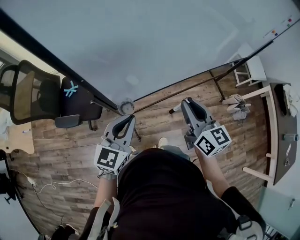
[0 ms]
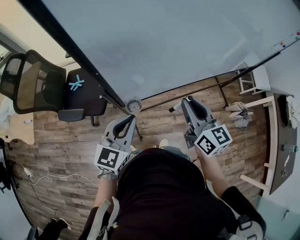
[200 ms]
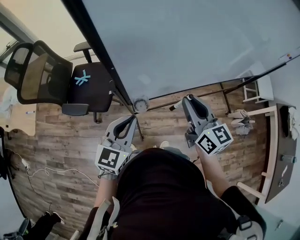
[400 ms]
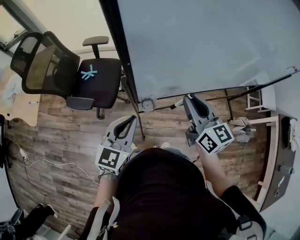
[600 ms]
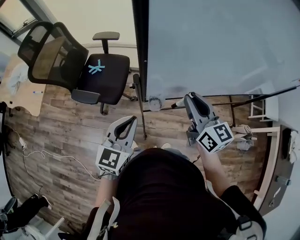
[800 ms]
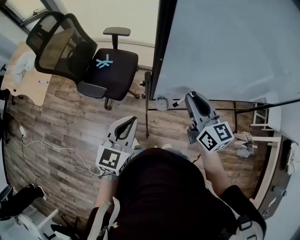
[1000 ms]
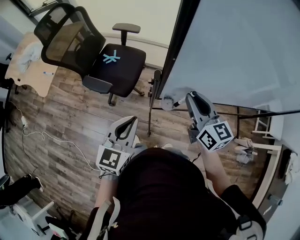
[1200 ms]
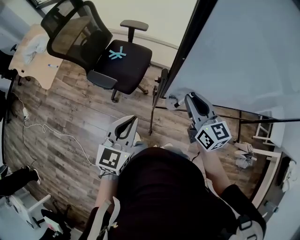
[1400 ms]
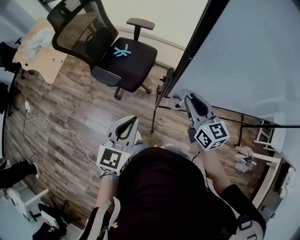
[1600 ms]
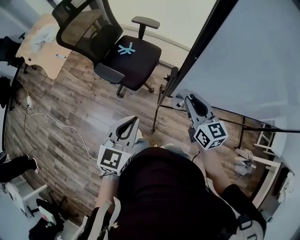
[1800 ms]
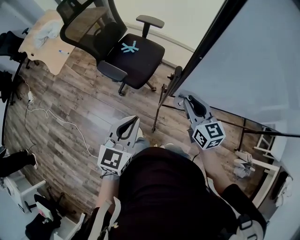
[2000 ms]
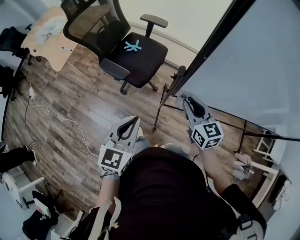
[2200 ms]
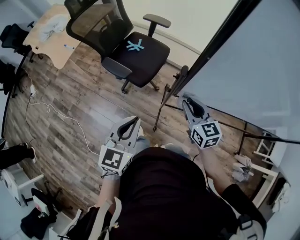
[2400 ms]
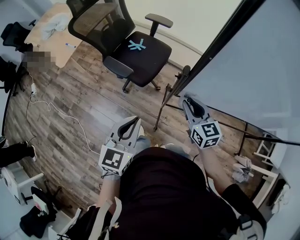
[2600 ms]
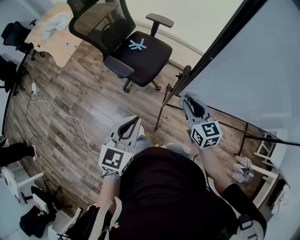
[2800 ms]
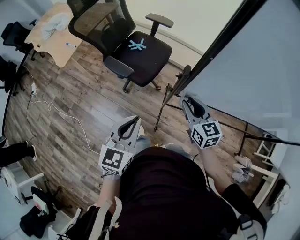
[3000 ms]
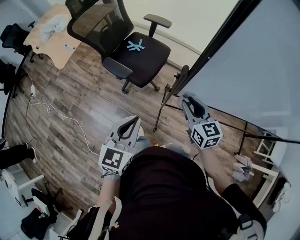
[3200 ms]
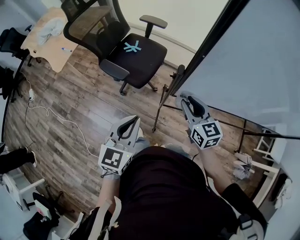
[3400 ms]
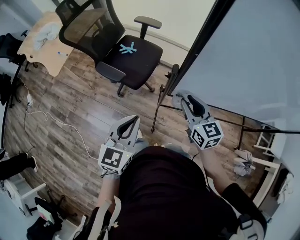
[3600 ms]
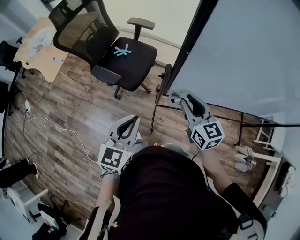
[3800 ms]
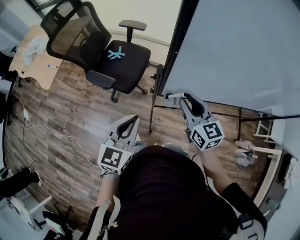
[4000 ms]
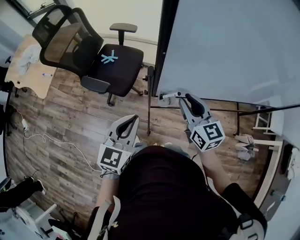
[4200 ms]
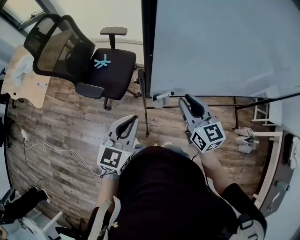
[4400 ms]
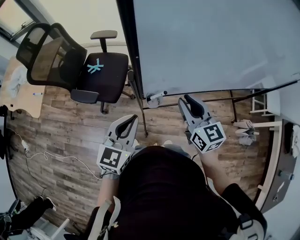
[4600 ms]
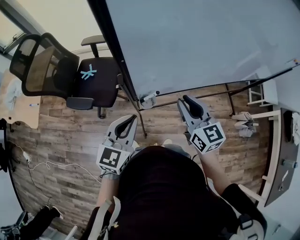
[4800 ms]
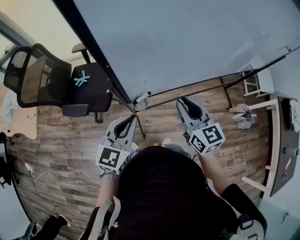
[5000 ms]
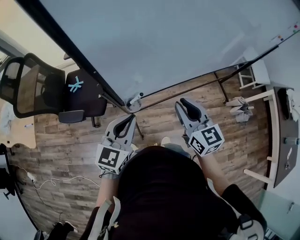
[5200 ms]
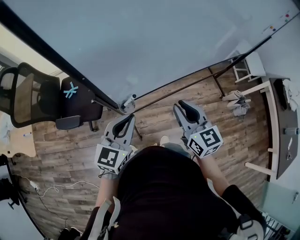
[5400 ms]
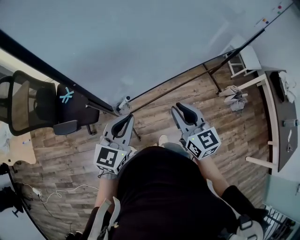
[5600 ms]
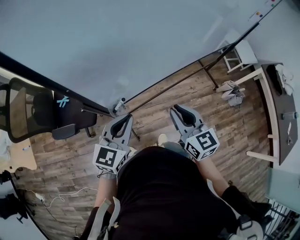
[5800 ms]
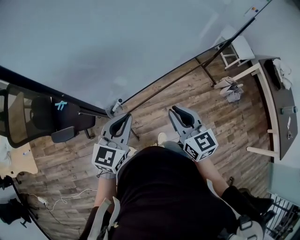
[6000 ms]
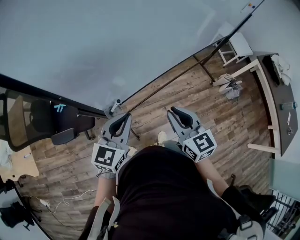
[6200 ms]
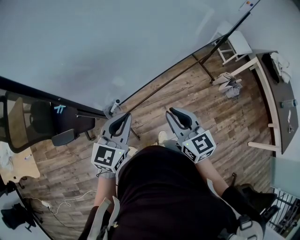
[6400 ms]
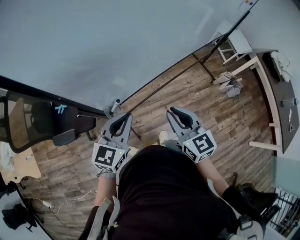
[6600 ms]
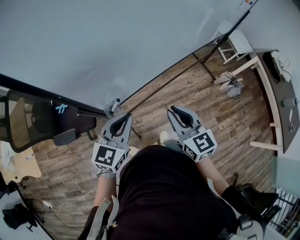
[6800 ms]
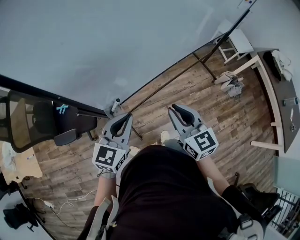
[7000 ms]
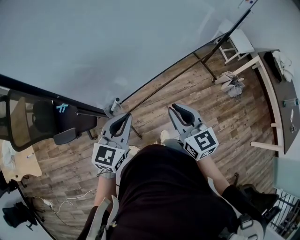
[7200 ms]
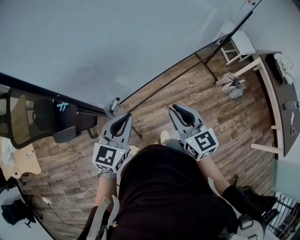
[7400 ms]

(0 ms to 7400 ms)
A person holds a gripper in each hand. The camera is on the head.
0 ms - 1400 ms: The right gripper moves roughly 20 cm, and rotates some 30 degrees, while the left gripper ends up approximately 15 cm from where it was, and swivels approximately 30 degrees.
1400 ms - 3000 ms: The left gripper changes place by approximately 5 cm, while the right gripper goes approximately 10 cm downward and to the left.
3000 ms - 4400 ms: The right gripper moves to the right and upward, roughly 10 cm. The left gripper shifts roughly 10 cm to the right.
4400 ms - 6000 ms: The left gripper ends up some 15 cm from where it was, and turns by about 30 degrees, while the right gripper moves about 15 cm, and changes its angle by about 20 degrees.
6000 ms - 7400 ms: The grippers move only a little.

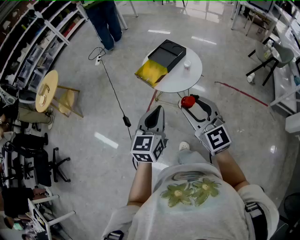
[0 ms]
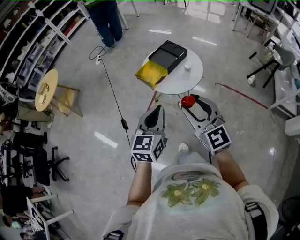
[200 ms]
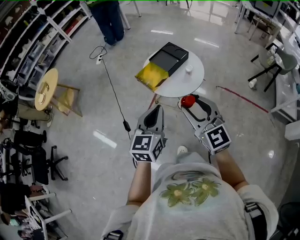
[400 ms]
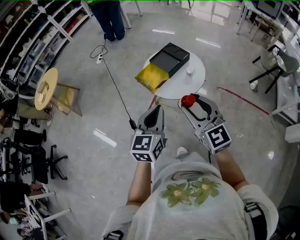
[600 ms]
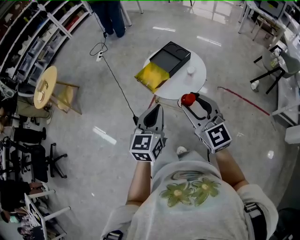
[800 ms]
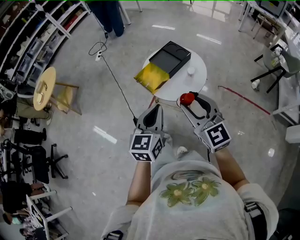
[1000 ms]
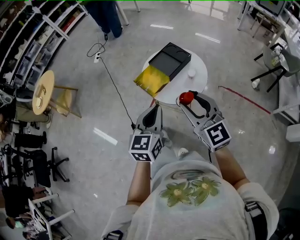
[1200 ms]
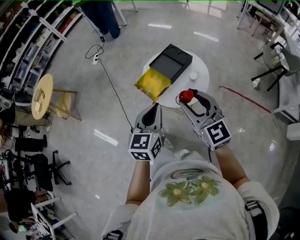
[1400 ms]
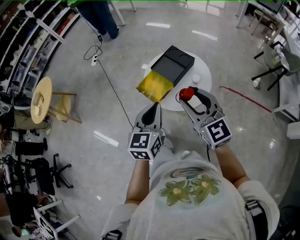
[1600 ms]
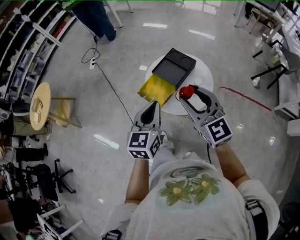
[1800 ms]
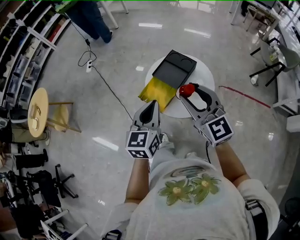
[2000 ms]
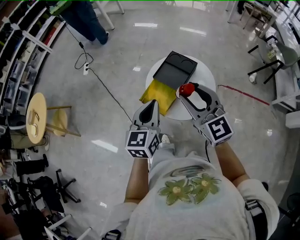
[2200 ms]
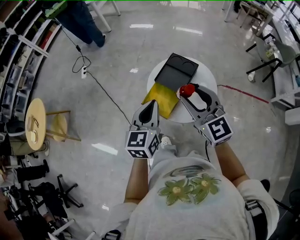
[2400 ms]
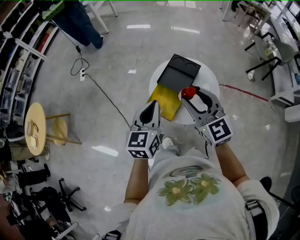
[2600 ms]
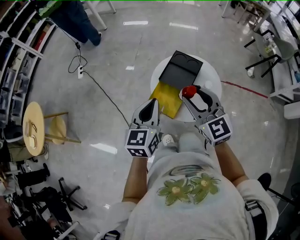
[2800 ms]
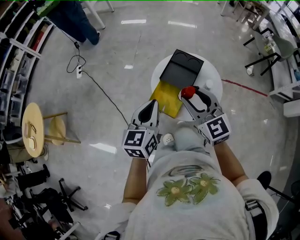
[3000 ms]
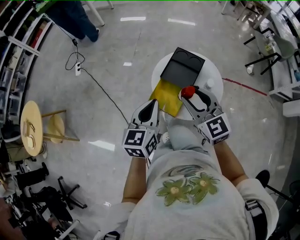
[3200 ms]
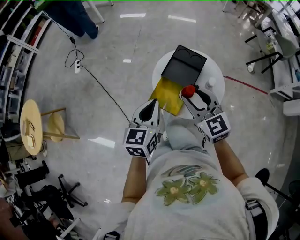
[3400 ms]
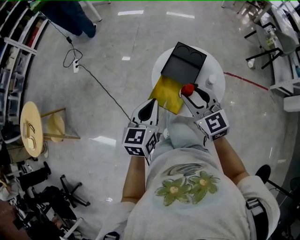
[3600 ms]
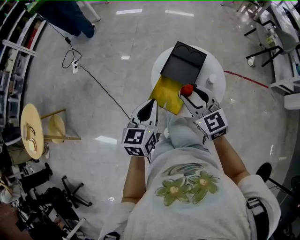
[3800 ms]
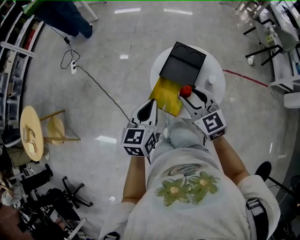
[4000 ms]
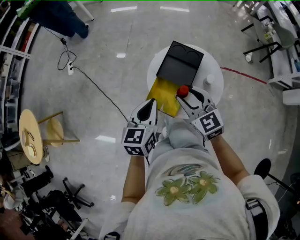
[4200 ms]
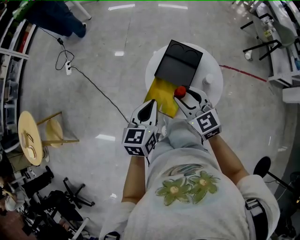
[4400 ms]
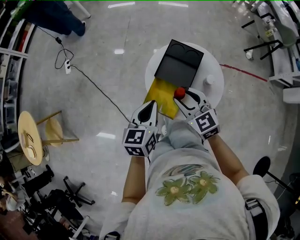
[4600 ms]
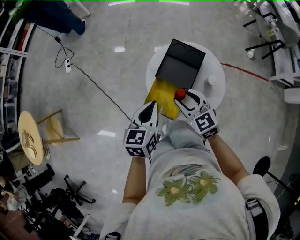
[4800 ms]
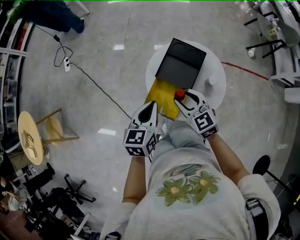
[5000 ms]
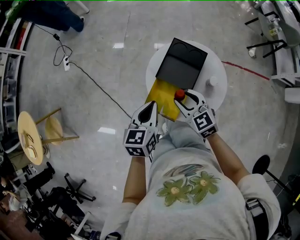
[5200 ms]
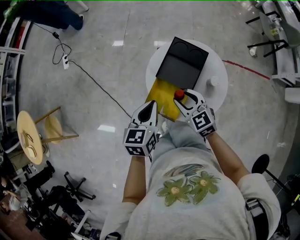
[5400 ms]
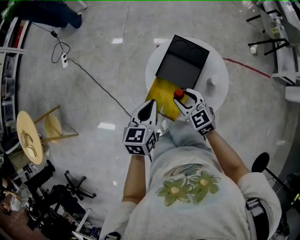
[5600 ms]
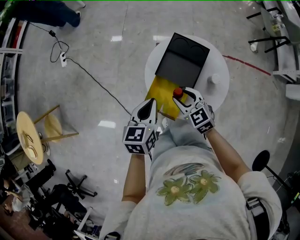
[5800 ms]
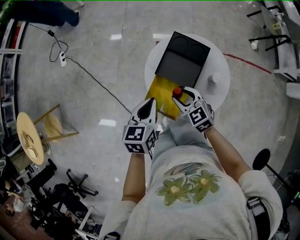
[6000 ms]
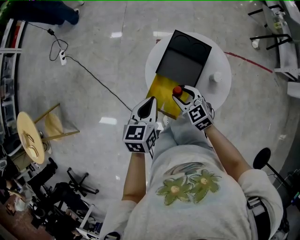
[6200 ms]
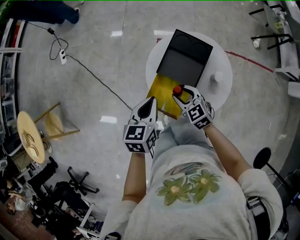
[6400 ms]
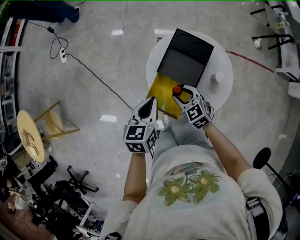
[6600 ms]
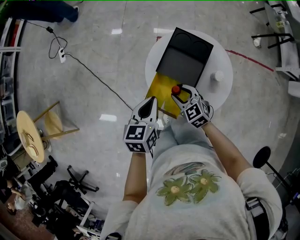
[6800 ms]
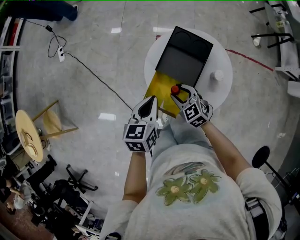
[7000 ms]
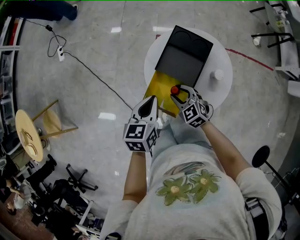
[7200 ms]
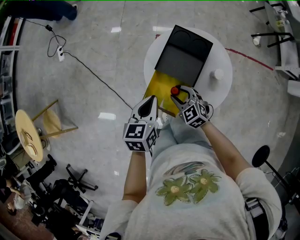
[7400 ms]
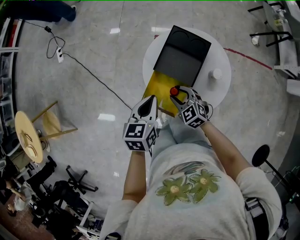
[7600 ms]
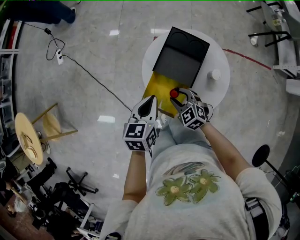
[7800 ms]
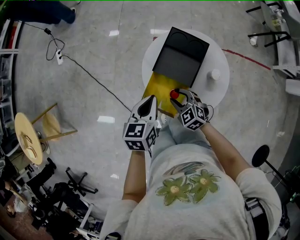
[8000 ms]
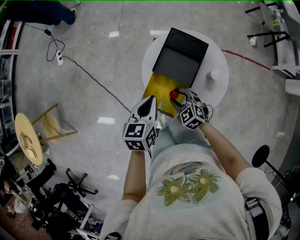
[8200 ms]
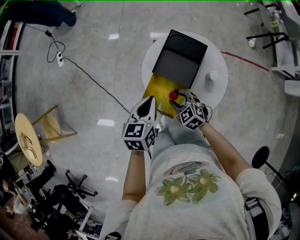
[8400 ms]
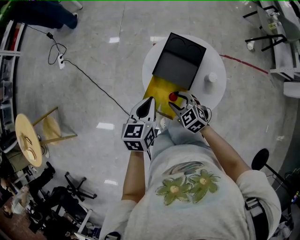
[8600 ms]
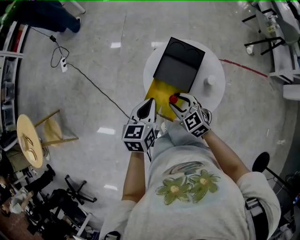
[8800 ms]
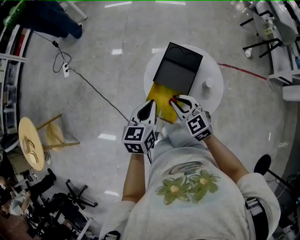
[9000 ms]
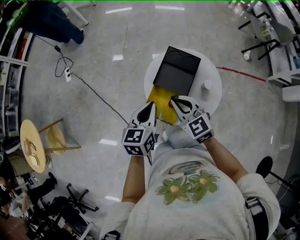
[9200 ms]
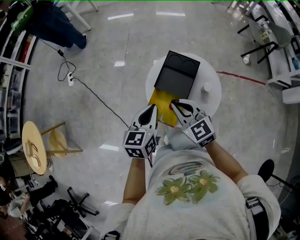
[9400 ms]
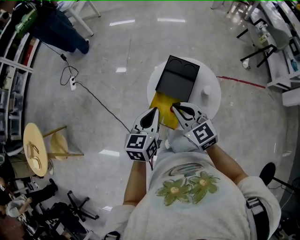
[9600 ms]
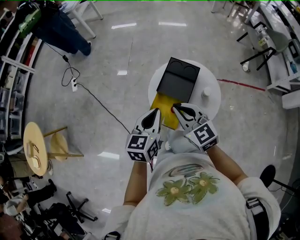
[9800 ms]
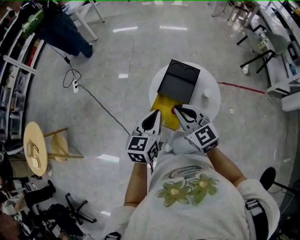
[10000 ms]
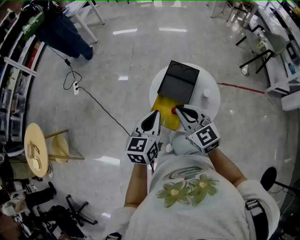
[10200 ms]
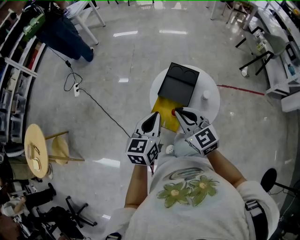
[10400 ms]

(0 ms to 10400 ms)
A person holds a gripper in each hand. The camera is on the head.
0 ms - 1400 ms: Both grippers travel together forward, approximately 20 cm.
1400 ms - 3000 ms: Both grippers travel together forward and to the left, about 25 cm.
3000 ms - 4400 ms: The two grippers go about 10 cm downward and forward.
4400 ms - 6000 ms: The right gripper is displaced downward by about 15 cm, while the left gripper shifts some 10 cm downward and forward.
6000 ms - 7400 ms: The right gripper shifts some 5 cm downward.
7400 ms - 9000 ms: The left gripper shifts about 5 cm upward. Meanwhile the right gripper moves upward, roughly 15 cm, and closes up.
9000 ms - 10400 ms: The grippers both shift upward and backward by some 10 cm.

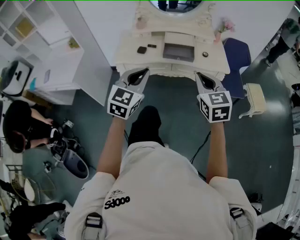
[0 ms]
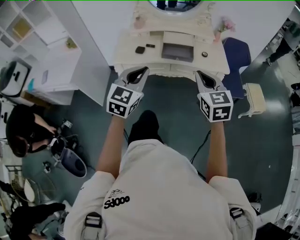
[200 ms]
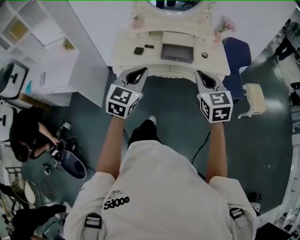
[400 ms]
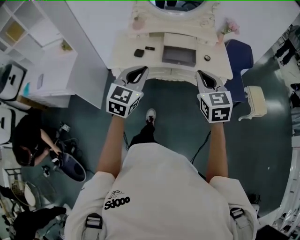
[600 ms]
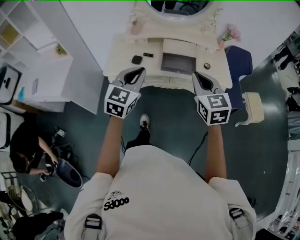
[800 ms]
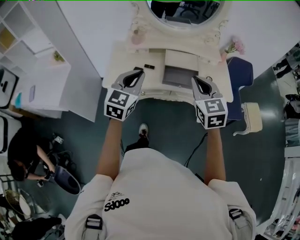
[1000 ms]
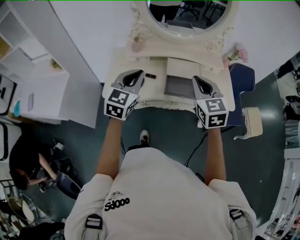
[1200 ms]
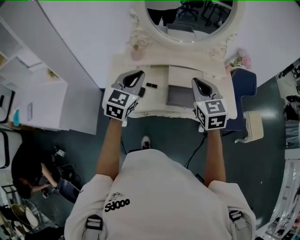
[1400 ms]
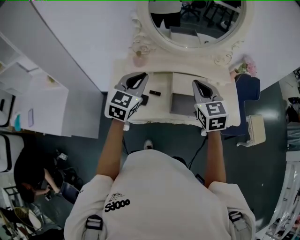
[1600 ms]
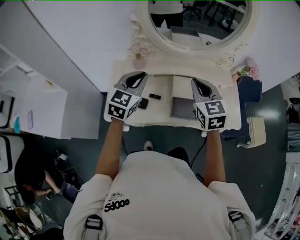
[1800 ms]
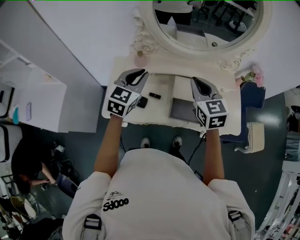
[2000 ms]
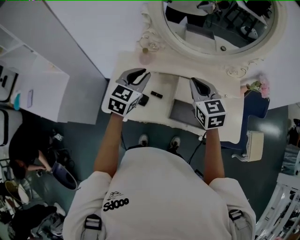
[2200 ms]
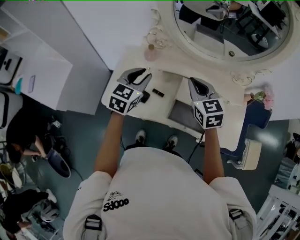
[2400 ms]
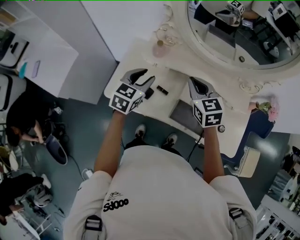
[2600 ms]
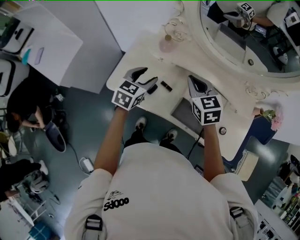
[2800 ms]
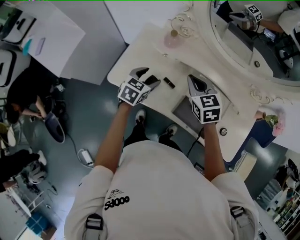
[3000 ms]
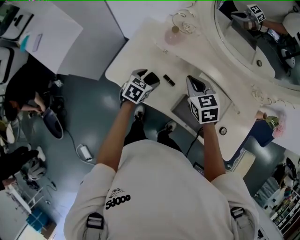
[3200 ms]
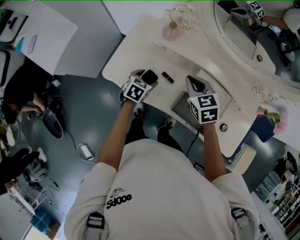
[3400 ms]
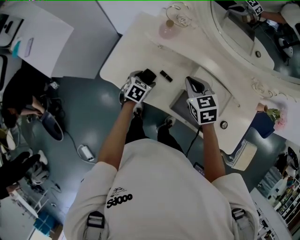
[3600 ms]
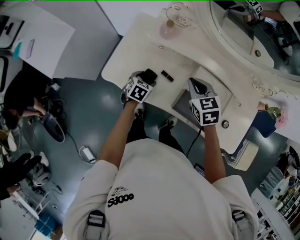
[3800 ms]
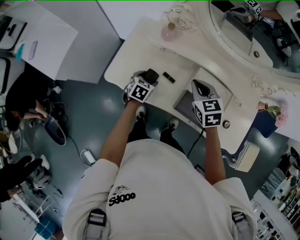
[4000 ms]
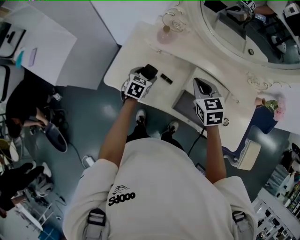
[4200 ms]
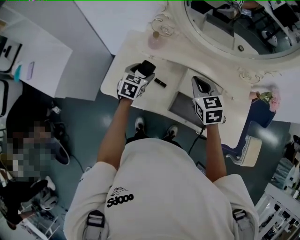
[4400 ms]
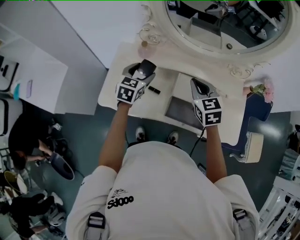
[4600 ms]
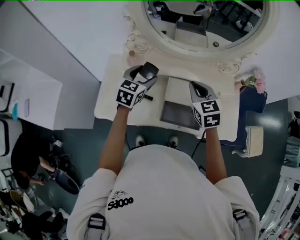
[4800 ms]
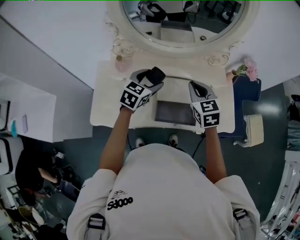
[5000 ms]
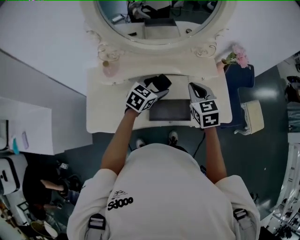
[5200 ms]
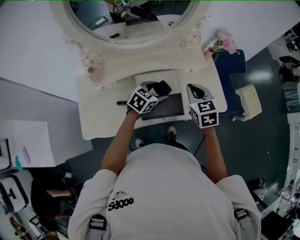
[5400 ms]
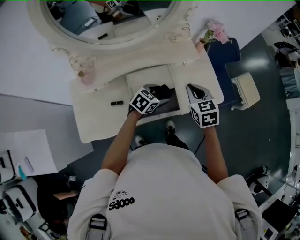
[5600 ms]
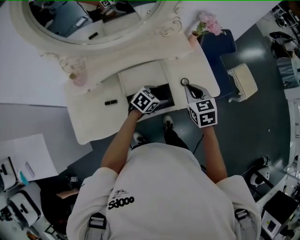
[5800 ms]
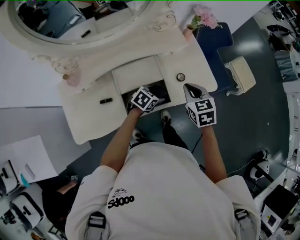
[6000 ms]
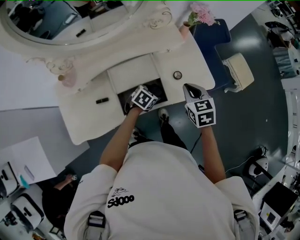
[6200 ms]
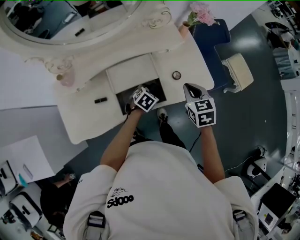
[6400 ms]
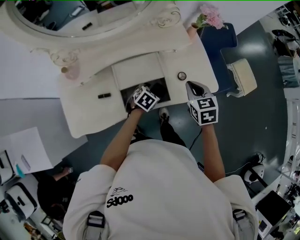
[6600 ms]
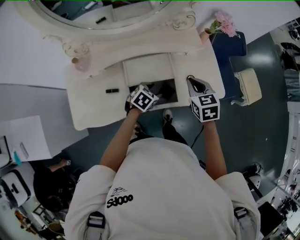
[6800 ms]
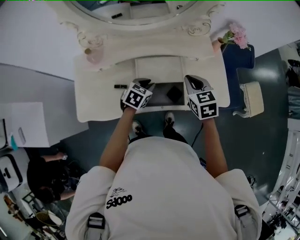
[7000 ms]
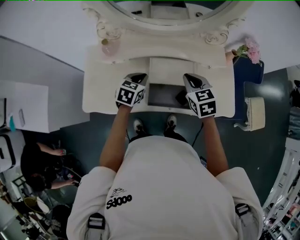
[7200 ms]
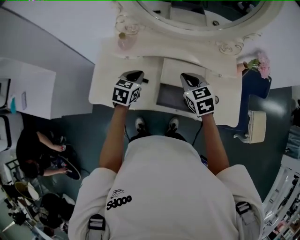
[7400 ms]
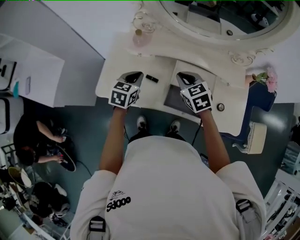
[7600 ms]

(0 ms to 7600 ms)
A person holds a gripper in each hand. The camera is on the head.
0 ms - 1600 ms: Both grippers are carried forward, approximately 40 cm.
1600 ms - 3000 ms: The right gripper ends up about 20 cm from where it was, and turns by roughly 40 degrees, while the left gripper travels downward by some 20 cm, swivels some 40 degrees, and opens up.
3000 ms - 4600 ms: The left gripper shifts roughly 10 cm upward and forward, while the right gripper moves to the right, roughly 10 cm.
4600 ms - 6000 ms: The left gripper ends up approximately 40 cm from where it was, and swivels some 60 degrees; the right gripper shifts by some 30 cm, and changes its angle by approximately 40 degrees.
6000 ms - 7600 ms: The left gripper ends up some 35 cm from where it was, swivels roughly 60 degrees, and closes its fingers, while the right gripper changes place by some 30 cm, and rotates approximately 50 degrees.
